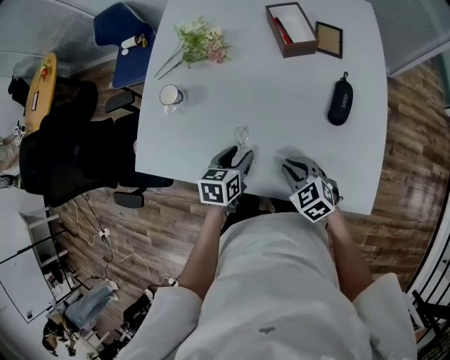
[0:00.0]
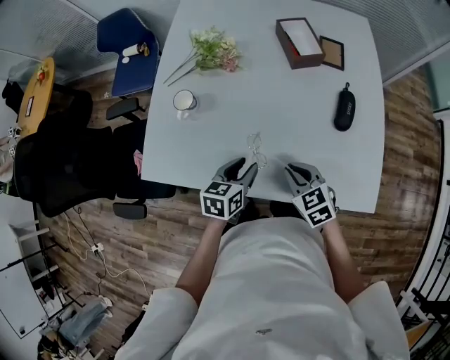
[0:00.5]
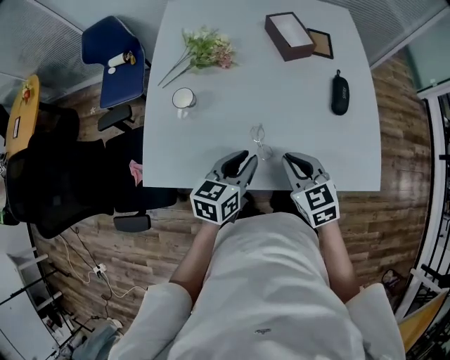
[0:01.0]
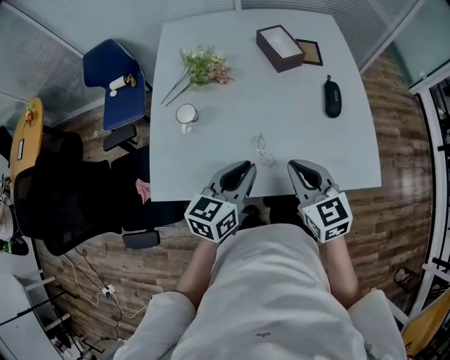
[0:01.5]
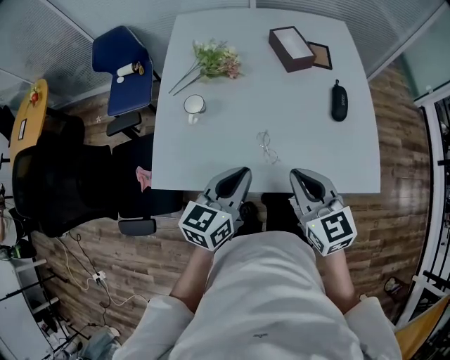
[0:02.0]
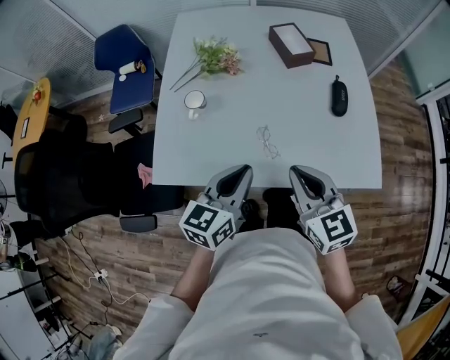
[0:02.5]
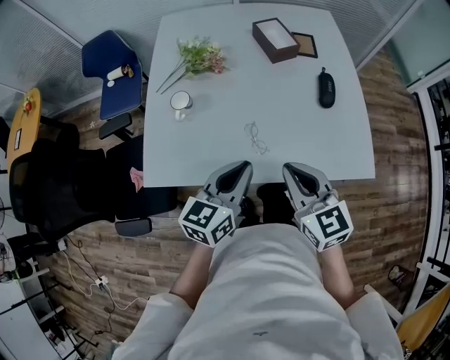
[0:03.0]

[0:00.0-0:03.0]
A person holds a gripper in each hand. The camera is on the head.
0:00.0 to 0:01.5: The grippers both shift upward and to the left by approximately 20 cm. The left gripper changes its angle by roughly 30 degrees, and closes, while the right gripper swivels roughly 40 degrees.
0:01.5 to 0:03.0: The right gripper moves backward, approximately 5 cm, while the left gripper moves some 5 cm.

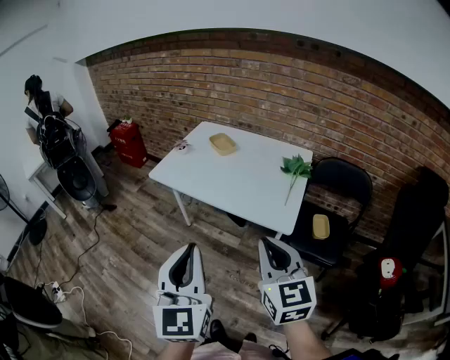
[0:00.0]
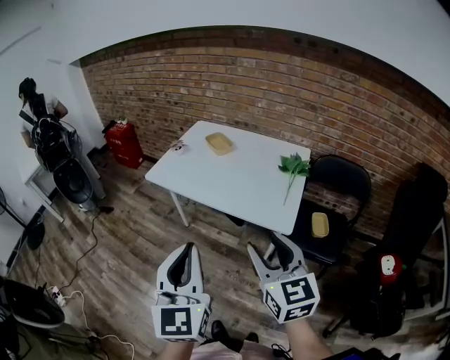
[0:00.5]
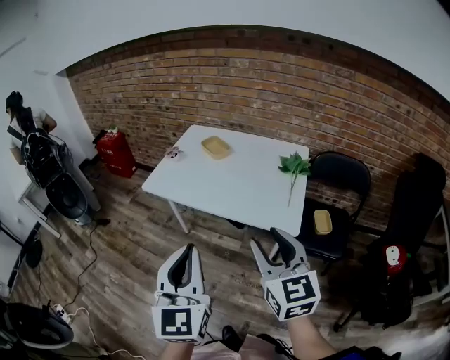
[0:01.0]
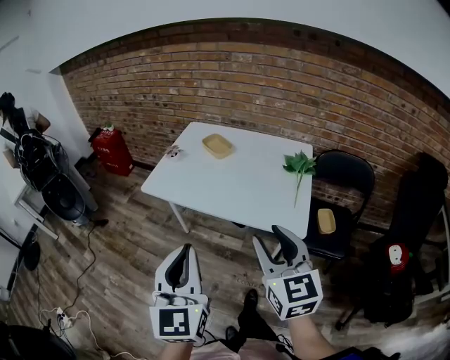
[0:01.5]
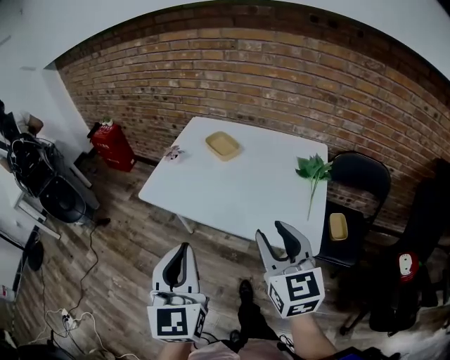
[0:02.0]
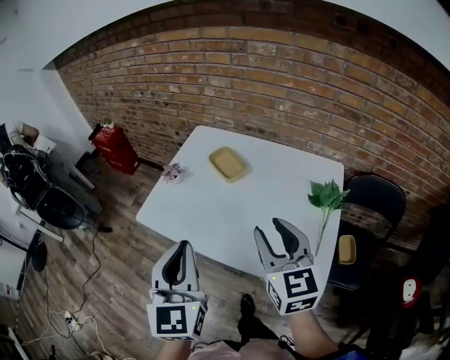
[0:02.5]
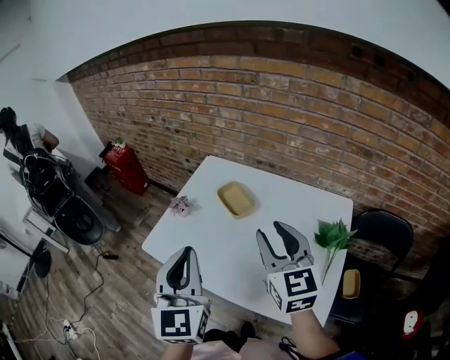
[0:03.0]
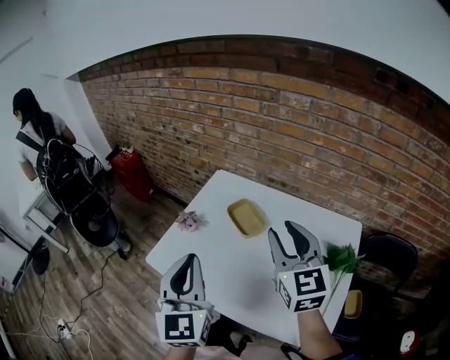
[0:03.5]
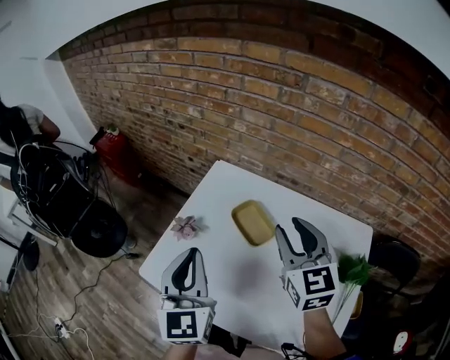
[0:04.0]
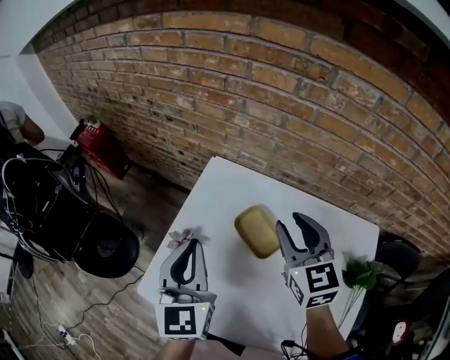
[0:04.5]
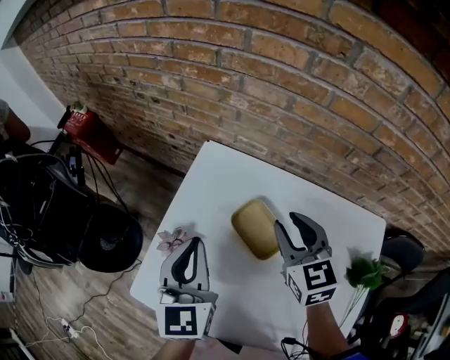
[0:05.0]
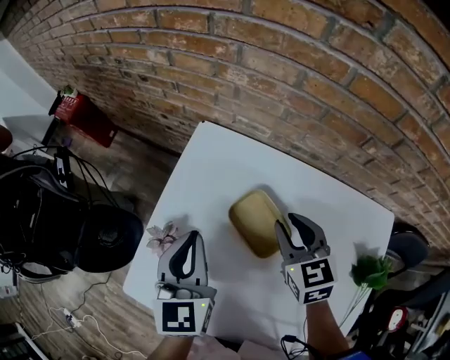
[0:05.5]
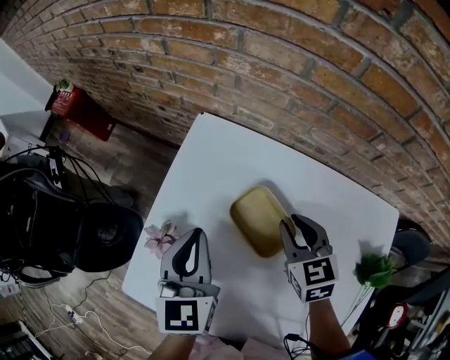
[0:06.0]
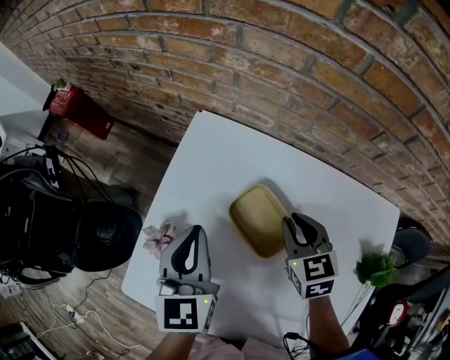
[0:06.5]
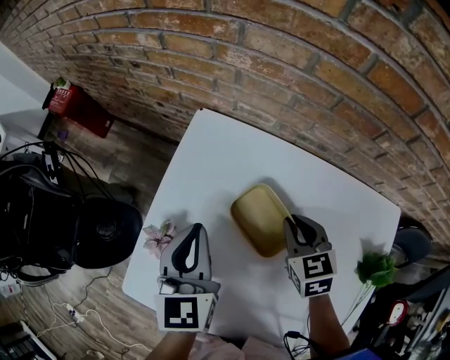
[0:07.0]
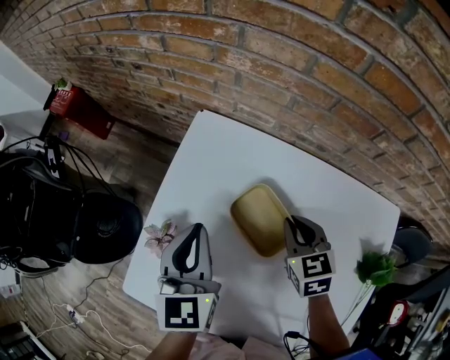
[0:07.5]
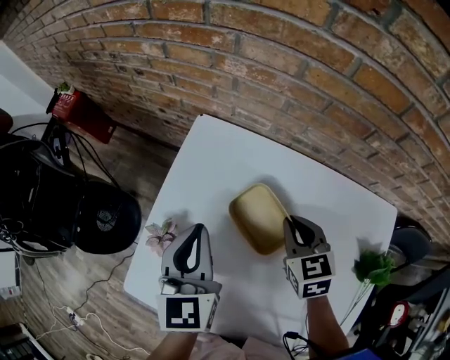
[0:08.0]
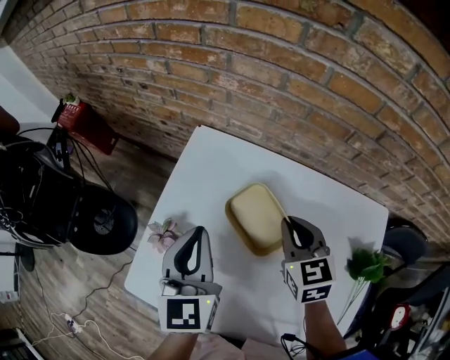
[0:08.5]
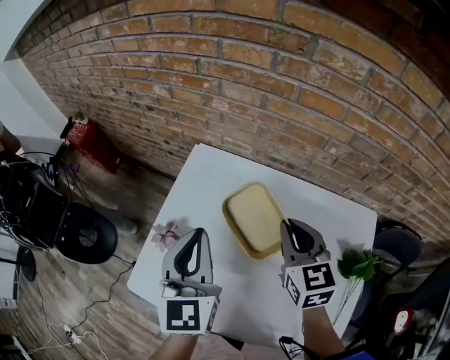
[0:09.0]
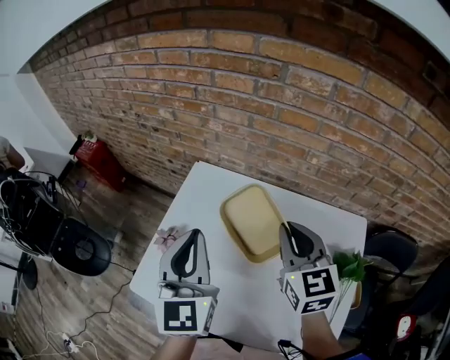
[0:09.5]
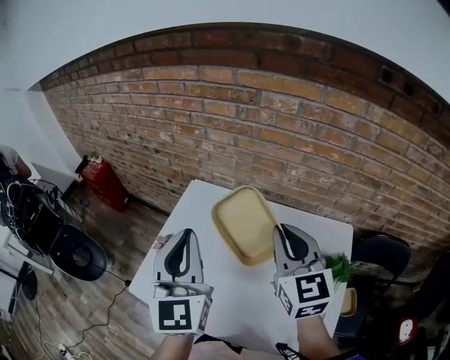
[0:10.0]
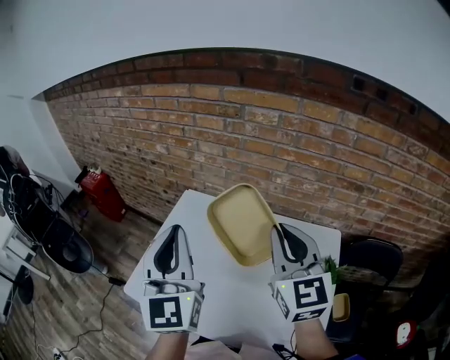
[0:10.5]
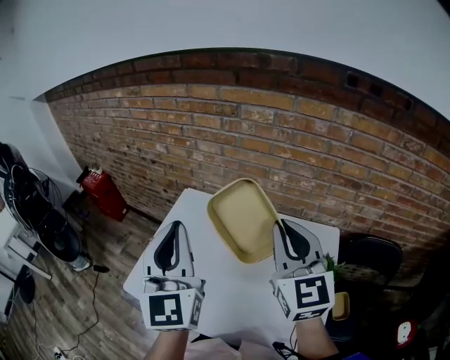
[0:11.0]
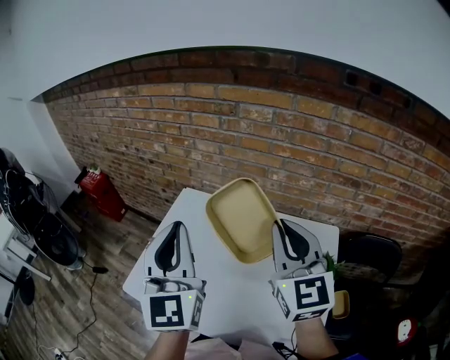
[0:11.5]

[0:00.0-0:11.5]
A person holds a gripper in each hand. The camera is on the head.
0:00.0 to 0:02.0: The two grippers go some 20 cm forward. The right gripper opens.
0:02.0 to 0:04.0: The two grippers go about 40 cm forward.
0:04.0 to 0:06.0: The right gripper heads downward and forward, covering roughly 25 cm, and changes its angle by about 30 degrees; the left gripper is displaced forward and downward by about 20 cm.
0:06.0 to 0:07.5: The grippers make only small movements.
0:07.5 to 0:09.5: The left gripper heads upward and backward, covering some 20 cm; the right gripper goes about 20 cm upward, and changes its angle by some 30 degrees.
0:09.5 to 0:11.5: The grippers both shift upward and backward by some 15 cm. The right gripper turns by about 20 degrees.

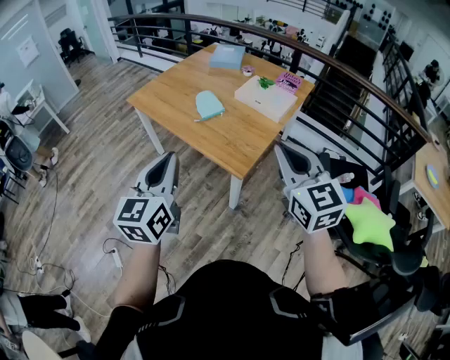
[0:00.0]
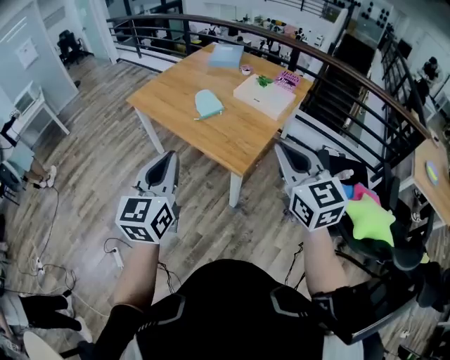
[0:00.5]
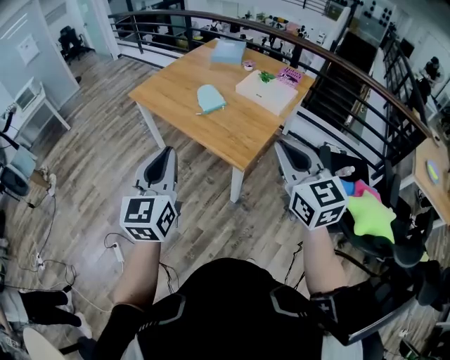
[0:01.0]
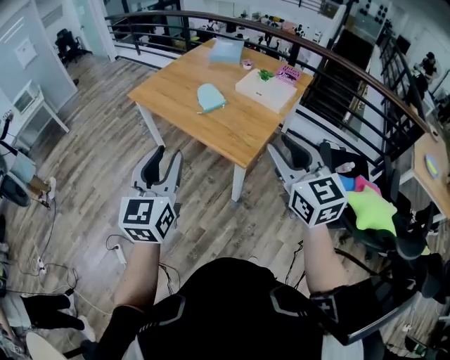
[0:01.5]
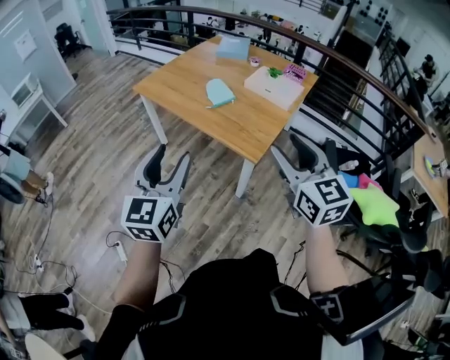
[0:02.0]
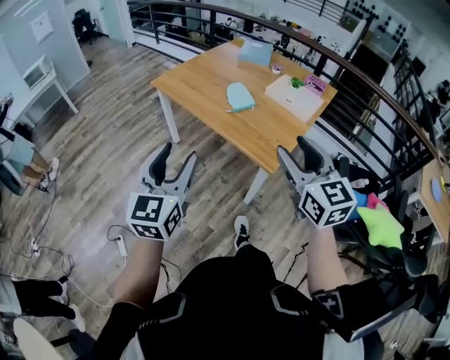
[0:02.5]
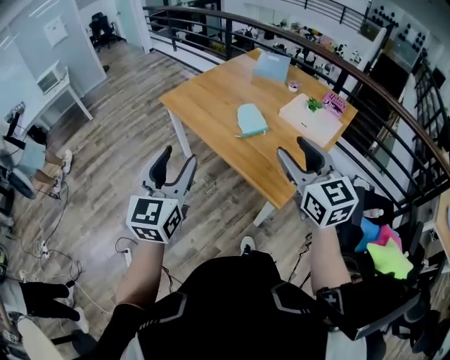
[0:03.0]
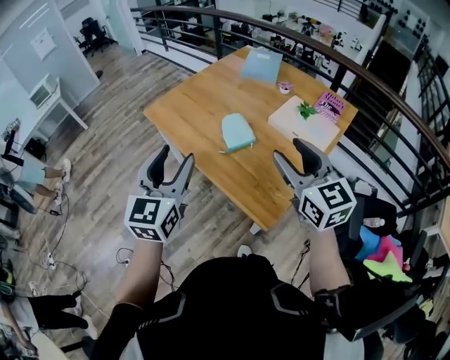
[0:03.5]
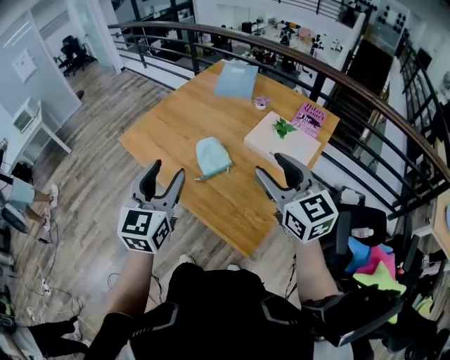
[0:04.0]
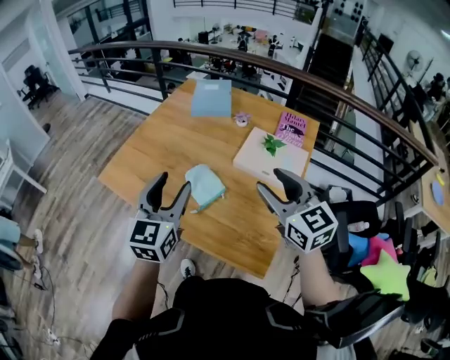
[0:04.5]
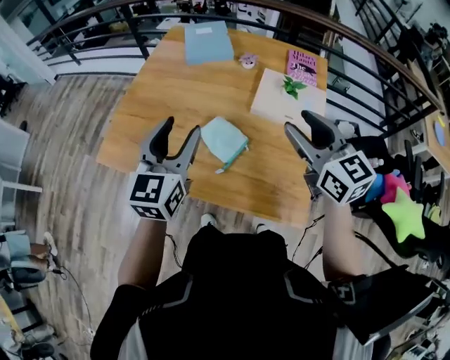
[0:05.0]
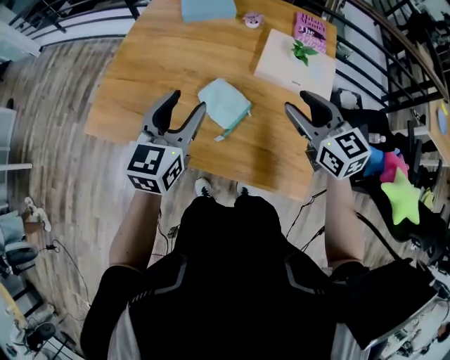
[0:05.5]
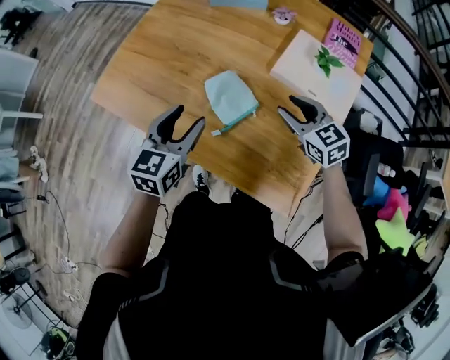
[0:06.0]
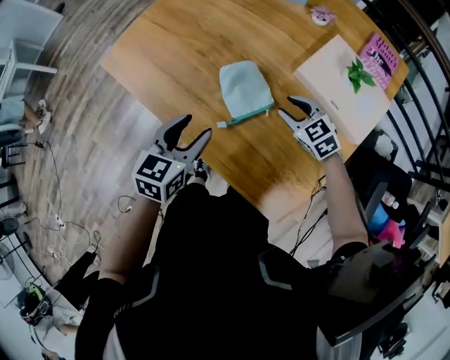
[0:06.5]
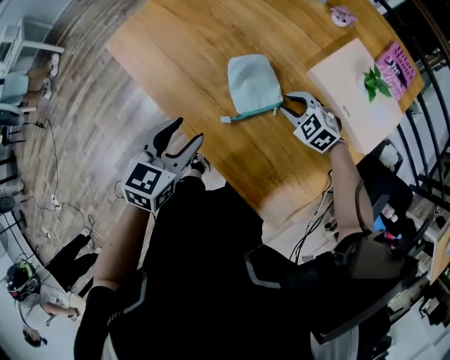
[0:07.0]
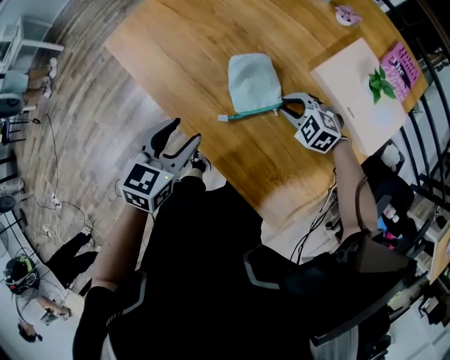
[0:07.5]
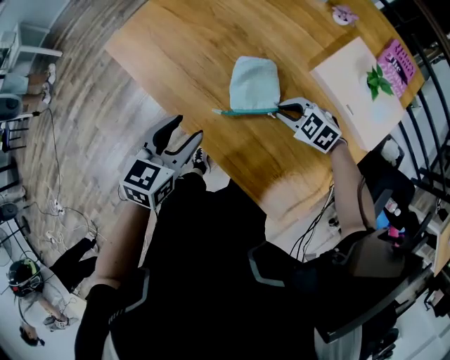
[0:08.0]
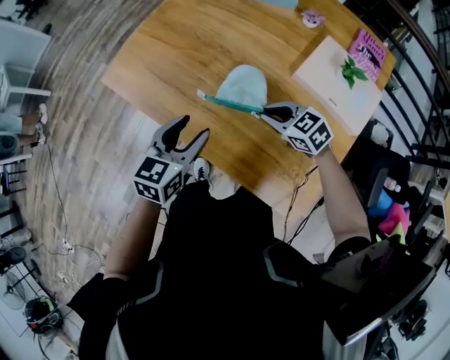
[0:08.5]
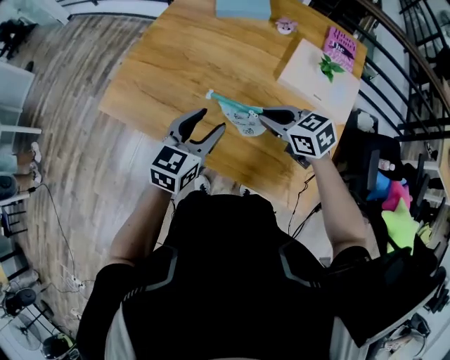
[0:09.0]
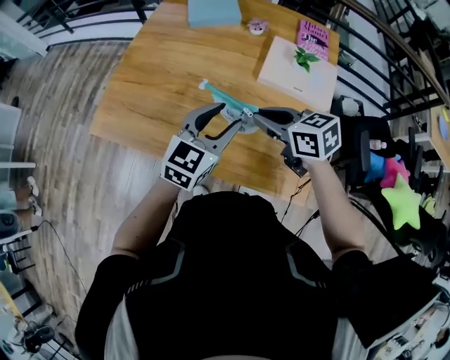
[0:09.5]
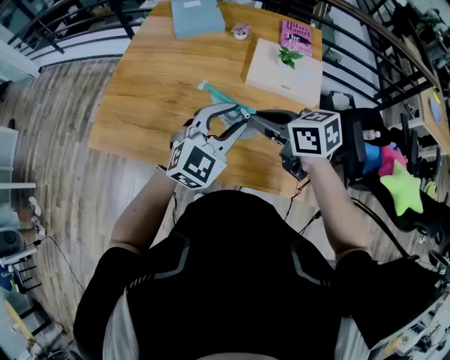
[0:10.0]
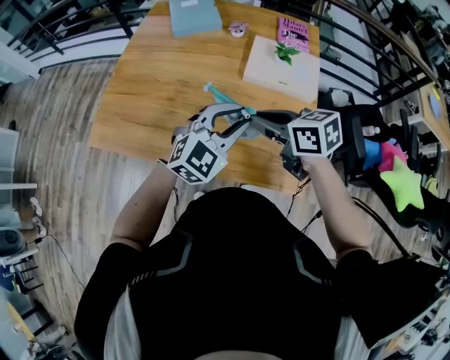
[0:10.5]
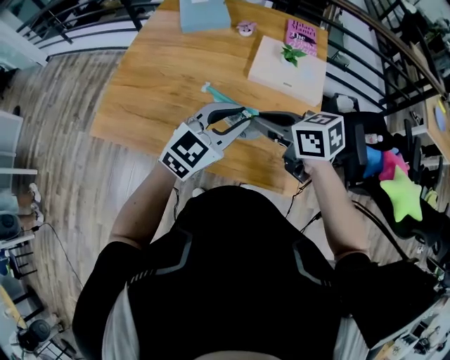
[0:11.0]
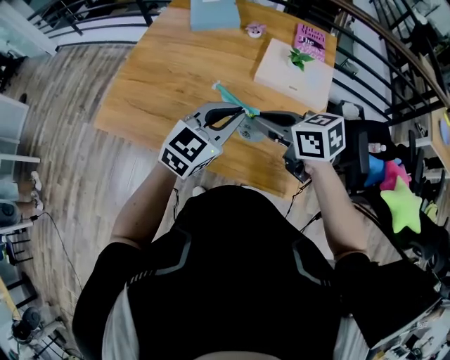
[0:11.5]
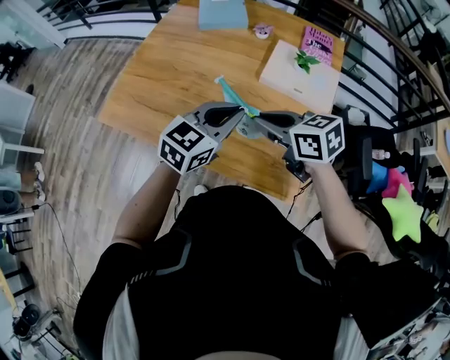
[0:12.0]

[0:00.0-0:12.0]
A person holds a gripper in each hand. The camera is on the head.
0:00.0 to 0:02.0: The grippers both shift to the left by some 5 cm. The right gripper opens; the left gripper opens up.
0:02.0 to 0:04.0: The grippers both shift forward by roughly 35 cm.
0:04.0 to 0:06.0: Both grippers move downward and forward, some 30 cm. The right gripper turns by about 30 degrees; the left gripper rotates some 30 degrees.
0:06.0 to 0:08.0: The right gripper shifts roughly 15 cm downward, rotates roughly 50 degrees, and closes its fingers. The left gripper shifts by approximately 10 cm.
0:08.0 to 0:10.0: The left gripper changes place by about 20 cm, and swivels about 60 degrees; the right gripper heads upward, covering roughly 25 cm, and twists approximately 60 degrees clockwise, seen from behind.
0:10.0 to 0:12.0: The left gripper rotates roughly 30 degrees, and closes.
